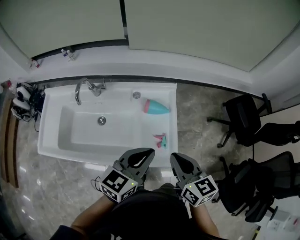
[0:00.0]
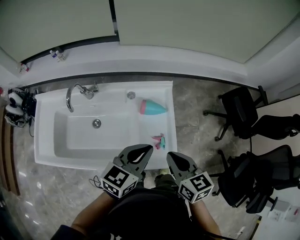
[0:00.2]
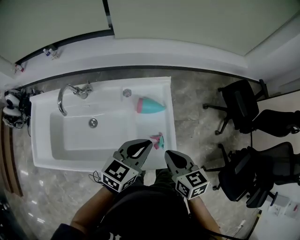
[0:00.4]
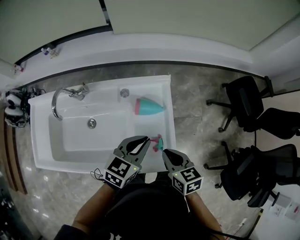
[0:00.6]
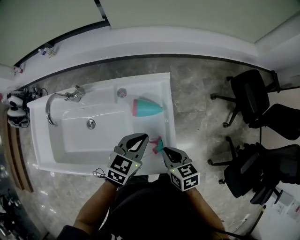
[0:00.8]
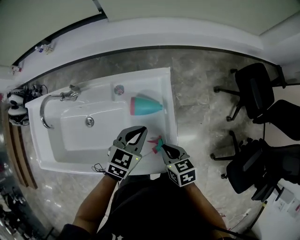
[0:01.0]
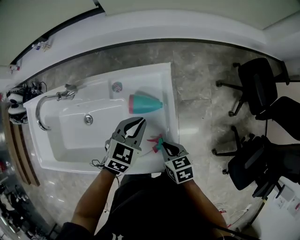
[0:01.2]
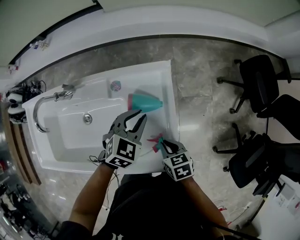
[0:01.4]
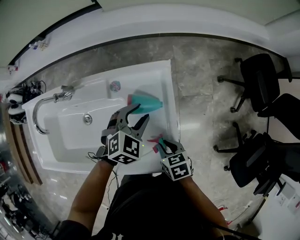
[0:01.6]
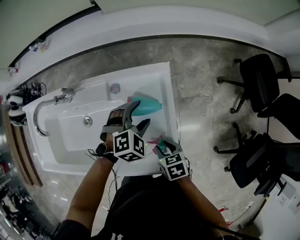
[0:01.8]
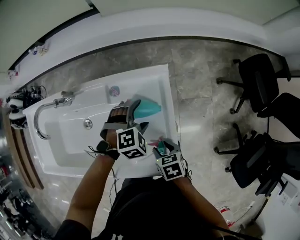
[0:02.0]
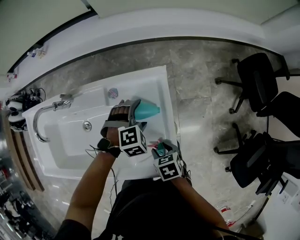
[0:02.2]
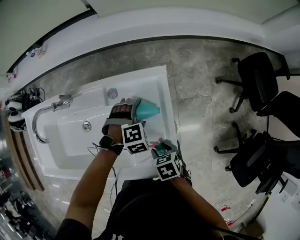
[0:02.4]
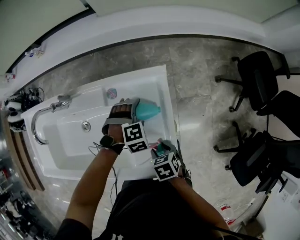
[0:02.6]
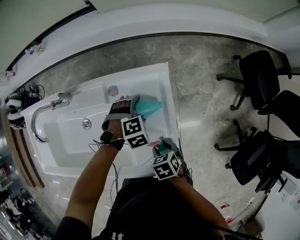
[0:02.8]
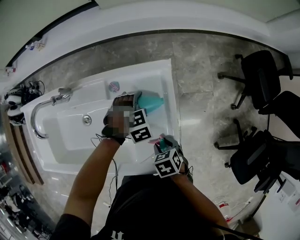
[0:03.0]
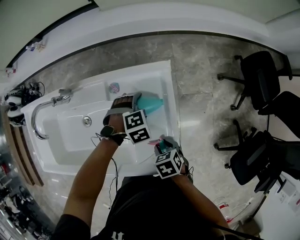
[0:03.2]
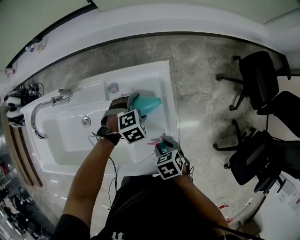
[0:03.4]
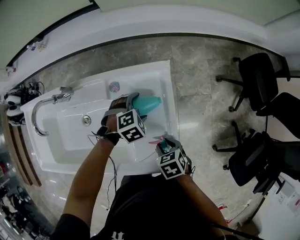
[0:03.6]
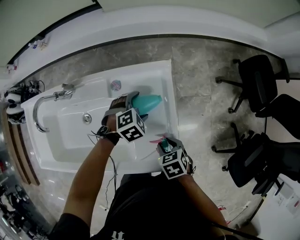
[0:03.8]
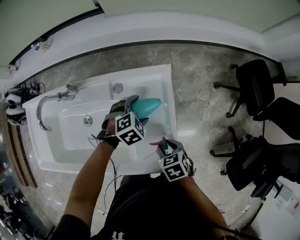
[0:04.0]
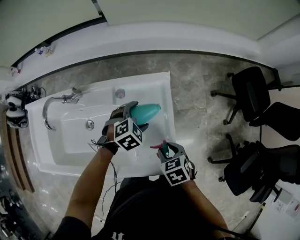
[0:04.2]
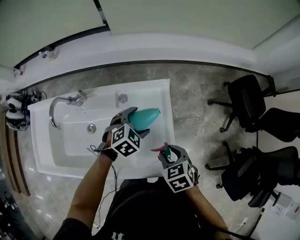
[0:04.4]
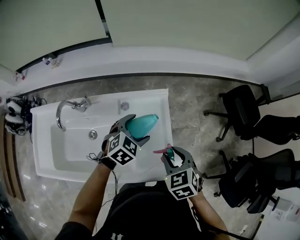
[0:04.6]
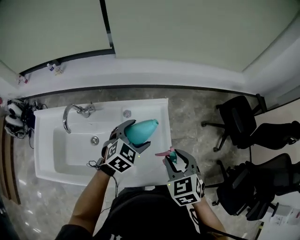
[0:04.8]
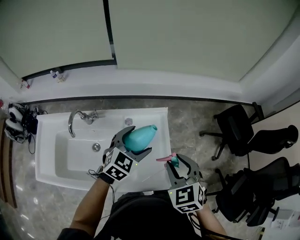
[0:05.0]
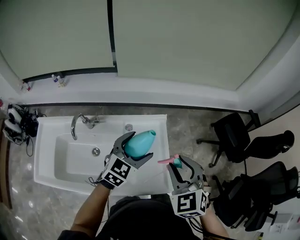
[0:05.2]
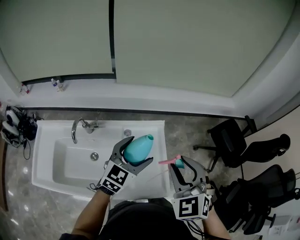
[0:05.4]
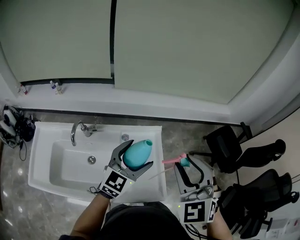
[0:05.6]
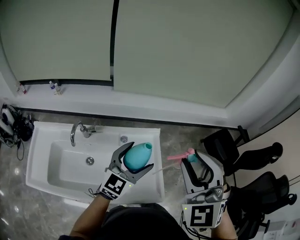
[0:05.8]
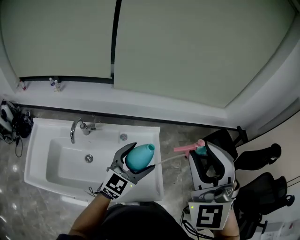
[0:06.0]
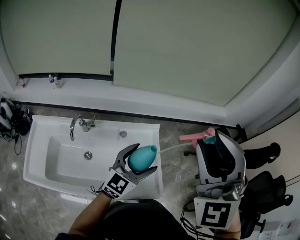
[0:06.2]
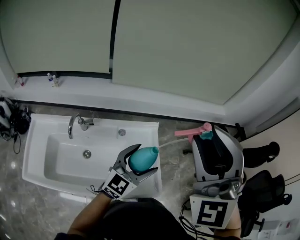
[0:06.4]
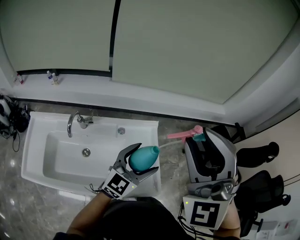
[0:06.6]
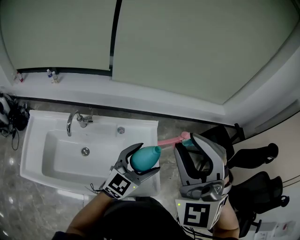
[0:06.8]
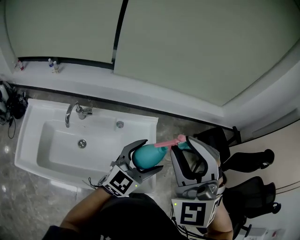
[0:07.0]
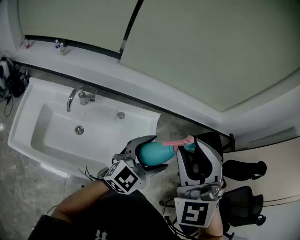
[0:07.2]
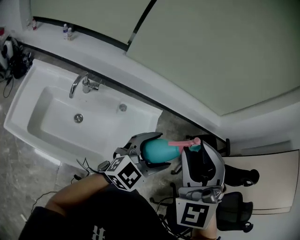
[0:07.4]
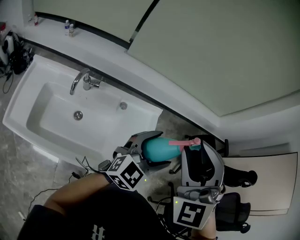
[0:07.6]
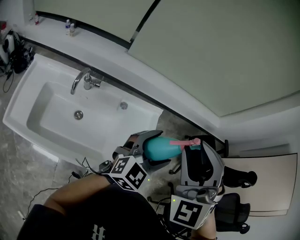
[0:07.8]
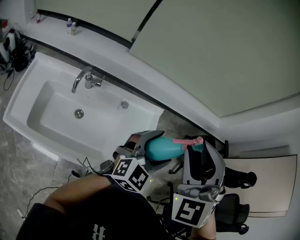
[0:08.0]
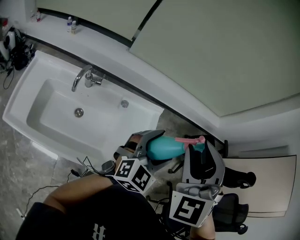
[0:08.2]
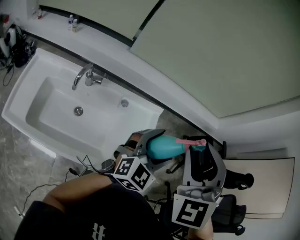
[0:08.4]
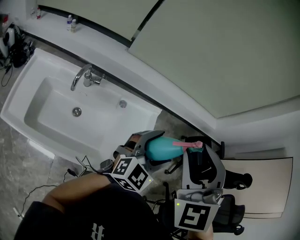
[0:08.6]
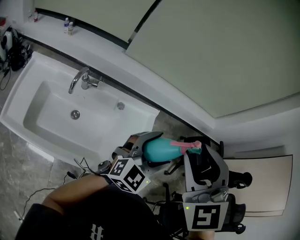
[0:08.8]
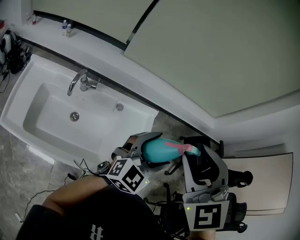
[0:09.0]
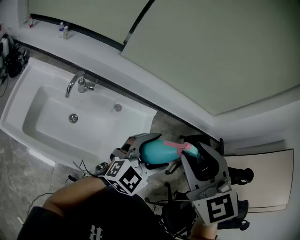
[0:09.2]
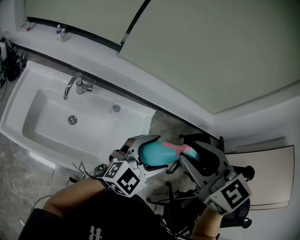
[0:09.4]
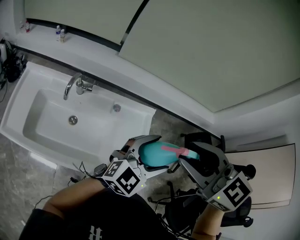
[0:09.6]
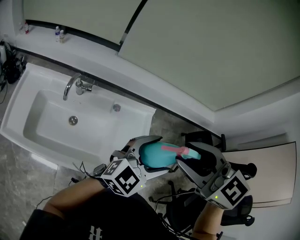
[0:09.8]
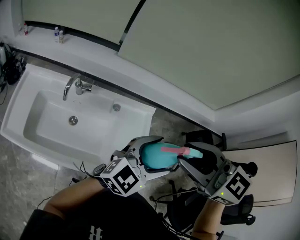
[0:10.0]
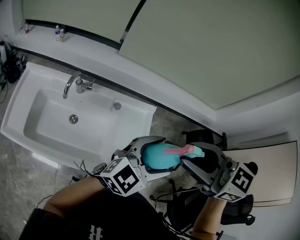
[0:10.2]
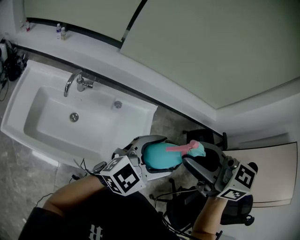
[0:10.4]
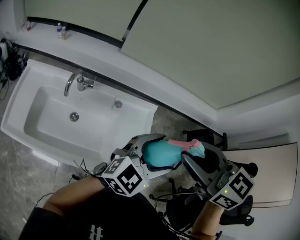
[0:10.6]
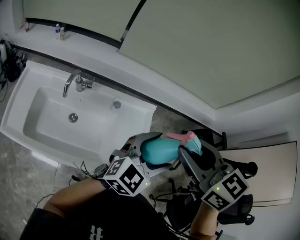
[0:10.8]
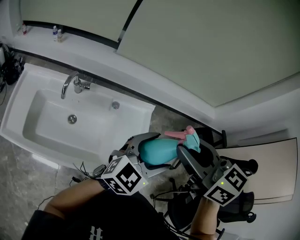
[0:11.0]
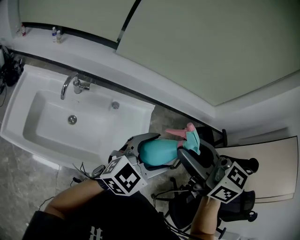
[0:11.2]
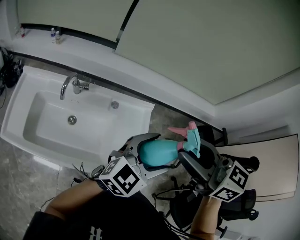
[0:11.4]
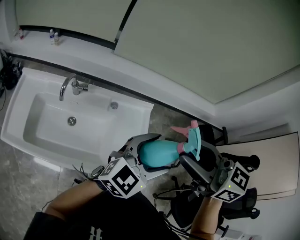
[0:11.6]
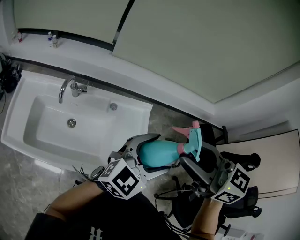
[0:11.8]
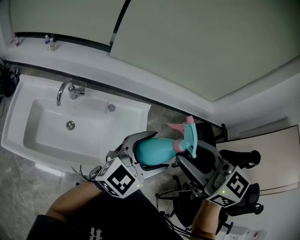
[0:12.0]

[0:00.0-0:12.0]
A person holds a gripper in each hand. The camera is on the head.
0.0 to 1.6 s: The right gripper moves downward, roughly 30 cm, and tips its fingers downward by approximately 40 degrees. The left gripper is displaced forward and downward by approximately 35 cm, angles its fingers downward, by some 30 degrees, and opens up.
1.6 to 3.0 s: The left gripper heads downward, covering about 10 cm, changes its angle by roughly 40 degrees, and opens up.
3.0 to 4.4 s: The two grippers go roughly 15 cm upward. The left gripper changes its angle by roughly 30 degrees, while the right gripper swivels about 20 degrees.
4.4 to 6.0 s: The right gripper shifts approximately 40 cm upward, and tilts its fingers roughly 50 degrees upward, while the left gripper moves upward and backward, approximately 30 cm, and tips its fingers upward by about 50 degrees.
6.0 to 7.6 s: The left gripper goes some 5 cm to the right, while the right gripper is displaced downward and to the left by roughly 10 cm.
7.6 to 9.0 s: The right gripper changes its angle by about 20 degrees.
9.0 to 10.4 s: The right gripper swivels some 60 degrees.

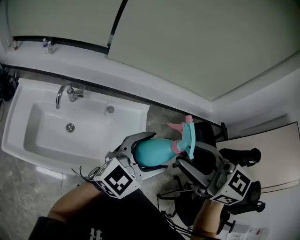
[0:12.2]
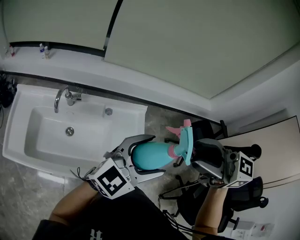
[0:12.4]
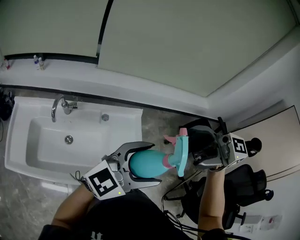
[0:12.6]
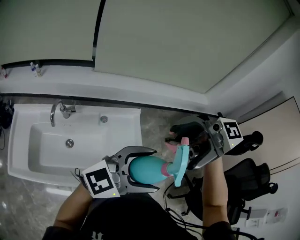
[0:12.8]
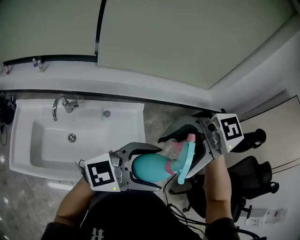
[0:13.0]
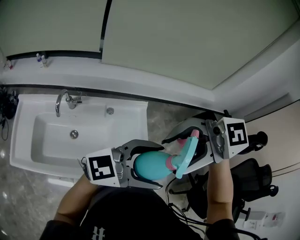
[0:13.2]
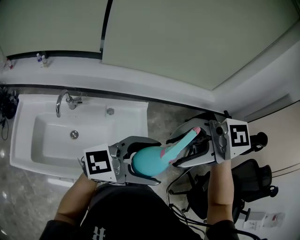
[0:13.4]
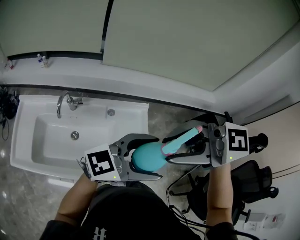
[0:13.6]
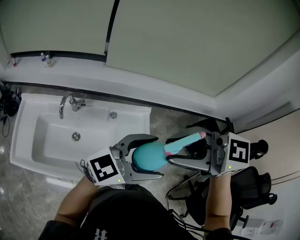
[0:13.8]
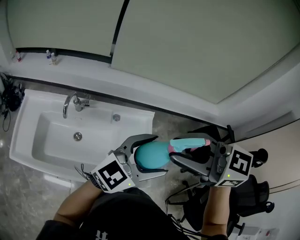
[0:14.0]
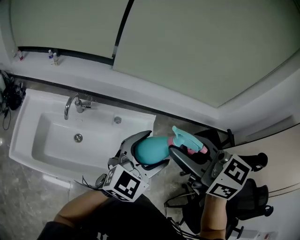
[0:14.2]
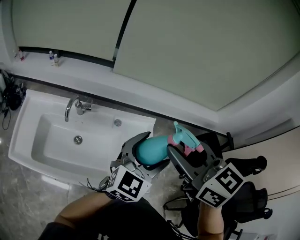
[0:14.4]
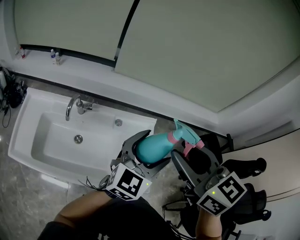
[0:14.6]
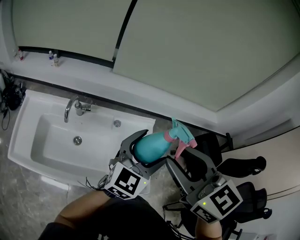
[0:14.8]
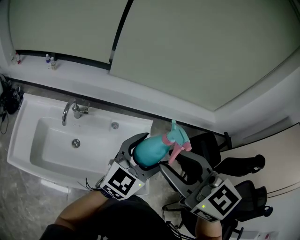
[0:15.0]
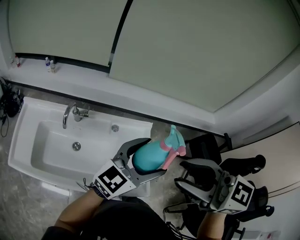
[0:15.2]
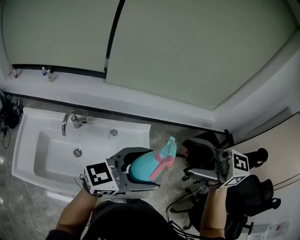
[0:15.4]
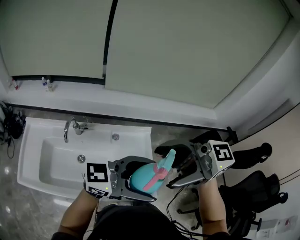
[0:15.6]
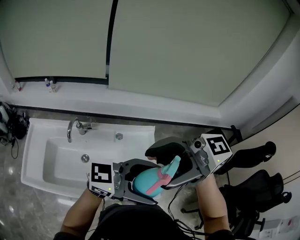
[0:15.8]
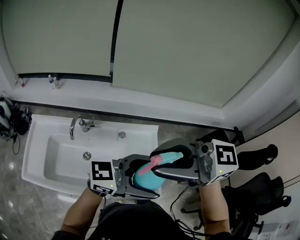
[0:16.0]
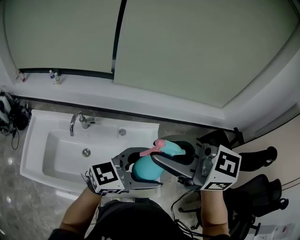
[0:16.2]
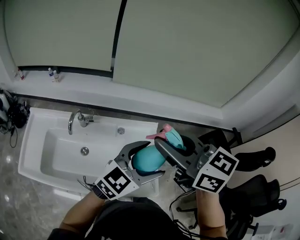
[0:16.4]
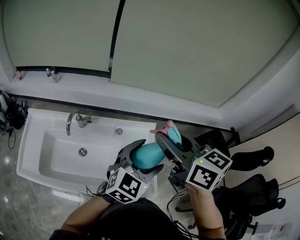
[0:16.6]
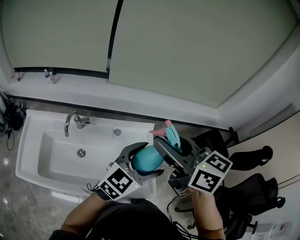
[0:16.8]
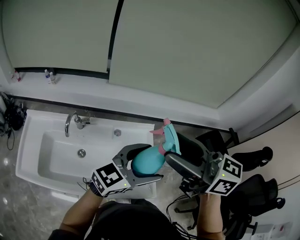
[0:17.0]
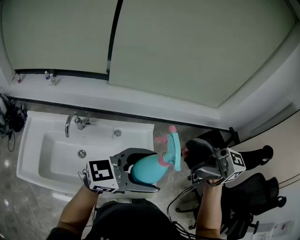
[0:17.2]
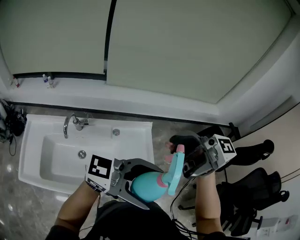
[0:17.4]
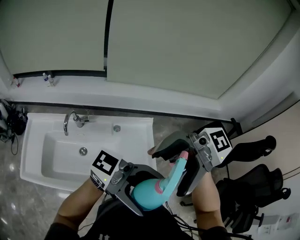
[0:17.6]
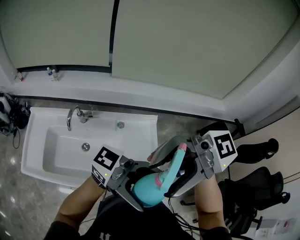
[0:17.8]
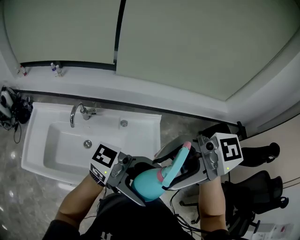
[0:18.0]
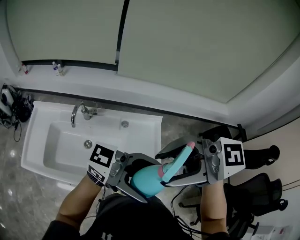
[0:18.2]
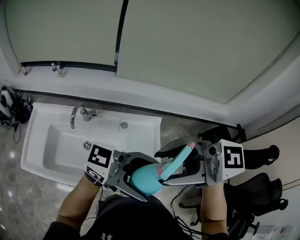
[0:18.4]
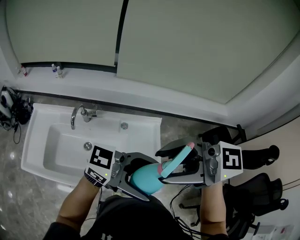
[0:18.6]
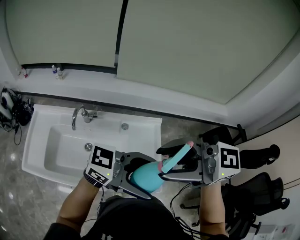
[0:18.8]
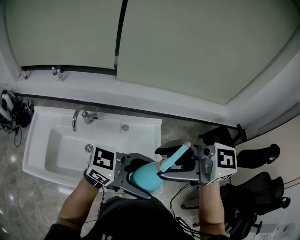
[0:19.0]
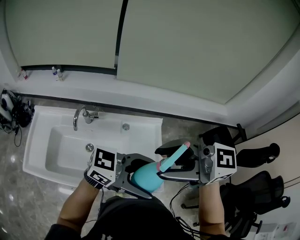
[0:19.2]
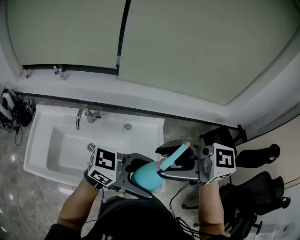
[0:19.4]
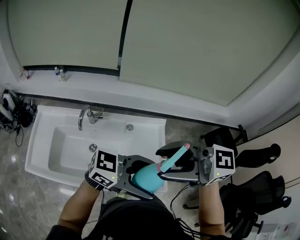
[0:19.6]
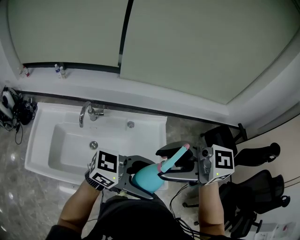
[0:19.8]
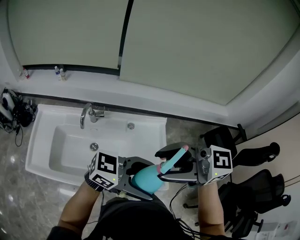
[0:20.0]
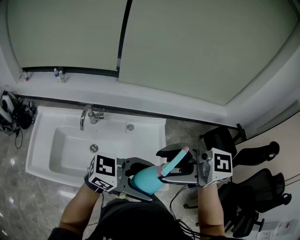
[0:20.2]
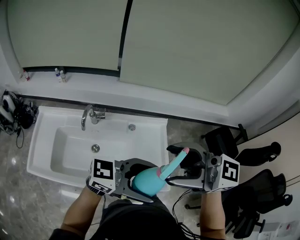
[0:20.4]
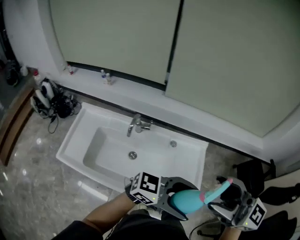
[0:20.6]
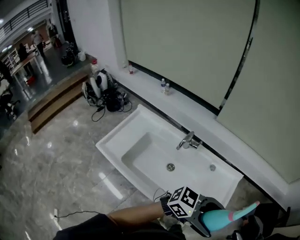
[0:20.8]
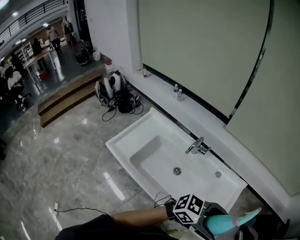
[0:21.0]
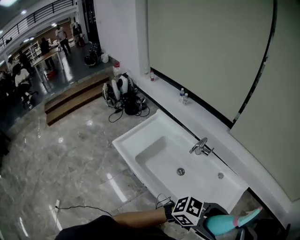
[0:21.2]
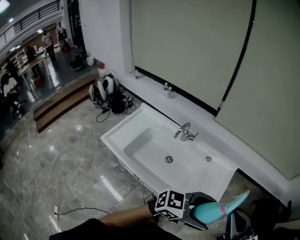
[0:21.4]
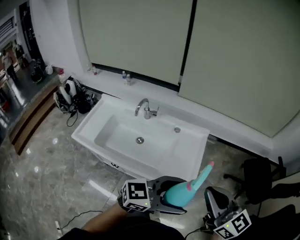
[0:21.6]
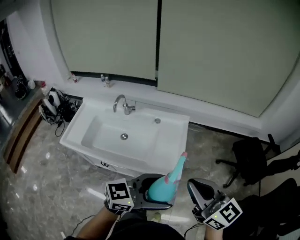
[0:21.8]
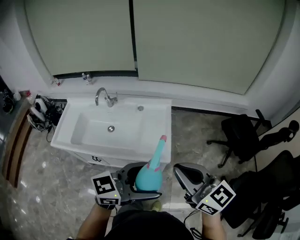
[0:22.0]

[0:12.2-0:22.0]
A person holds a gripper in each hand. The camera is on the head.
12.2 to 13.6 s: The right gripper changes place by about 5 cm, changes its angle by roughly 40 degrees, and opens, then closes once more. Meanwhile the left gripper changes its angle by some 30 degrees.
13.6 to 15.0 s: The left gripper ends up some 10 cm from where it was, and swivels approximately 40 degrees; the right gripper turns by about 50 degrees.
15.0 to 16.4 s: The right gripper ends up about 5 cm from where it was, and opens and closes again.
16.4 to 17.8 s: The right gripper moves roughly 15 cm, rotates about 70 degrees, and opens its fingers. Meanwhile the left gripper moves roughly 15 cm, and tips its fingers upward by about 30 degrees.
17.8 to 19.2 s: The left gripper is displaced downward by some 5 cm, and turns by some 30 degrees. The right gripper ends up about 5 cm from where it was, and rotates approximately 30 degrees.
19.2 to 20.6 s: The right gripper shifts by about 5 cm, and swivels approximately 20 degrees. The left gripper moves about 5 cm.
20.6 to 22.0 s: The right gripper moves some 25 cm, and closes, while the left gripper changes place by about 20 cm, and turns by about 40 degrees.

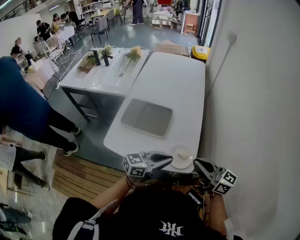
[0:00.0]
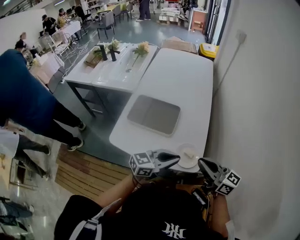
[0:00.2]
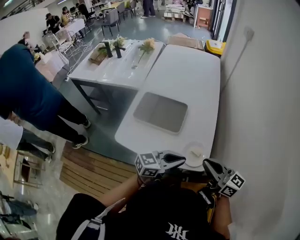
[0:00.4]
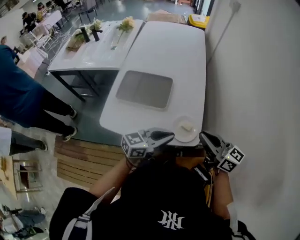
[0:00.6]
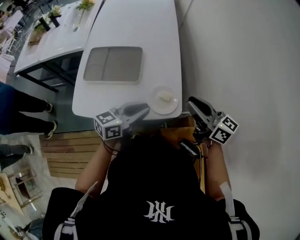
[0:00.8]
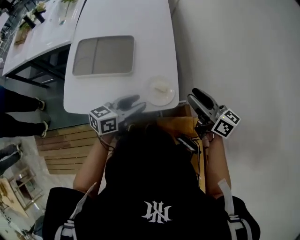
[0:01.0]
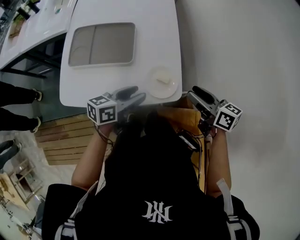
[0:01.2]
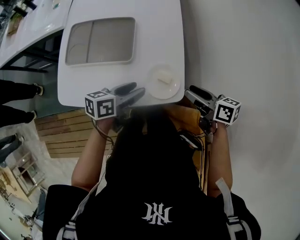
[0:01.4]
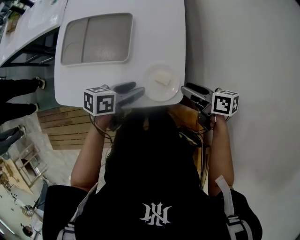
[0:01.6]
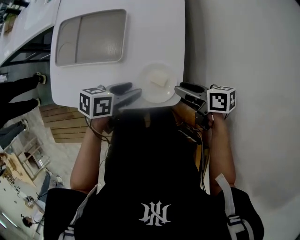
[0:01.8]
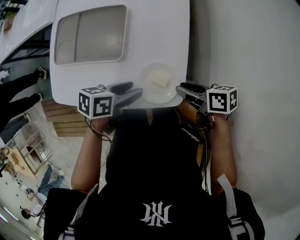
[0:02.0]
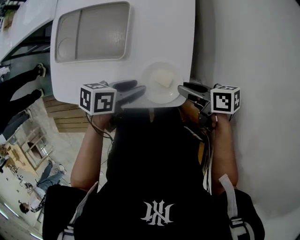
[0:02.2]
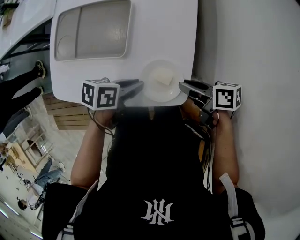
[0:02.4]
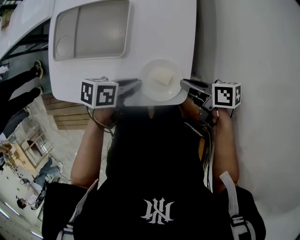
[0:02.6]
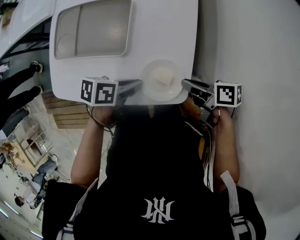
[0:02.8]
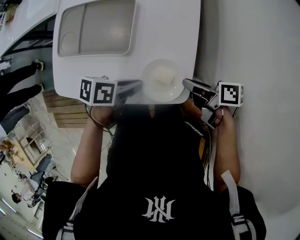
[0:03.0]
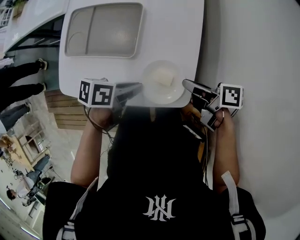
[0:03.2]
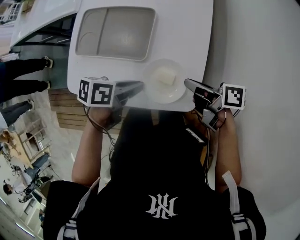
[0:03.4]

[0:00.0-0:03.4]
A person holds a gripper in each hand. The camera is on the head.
0.0 to 1.6 s: Both grippers move downward and forward, approximately 25 cm. The right gripper tips its fingers downward by some 40 degrees, and opens up; the left gripper rotates approximately 40 degrees, and opens up.
1.6 to 3.4 s: The left gripper ends up approximately 10 cm from where it was, and closes up, while the right gripper shifts by some 15 cm, turns by approximately 20 degrees, and closes its fingers.
